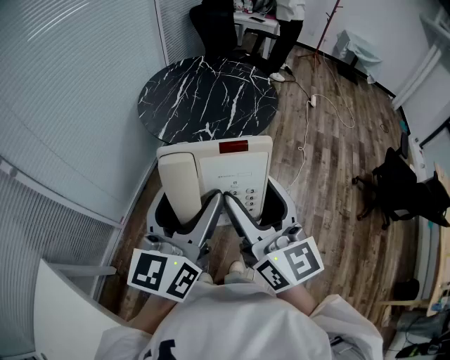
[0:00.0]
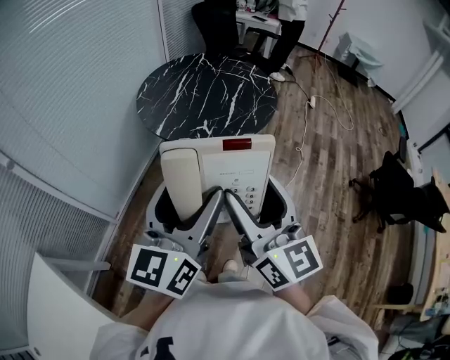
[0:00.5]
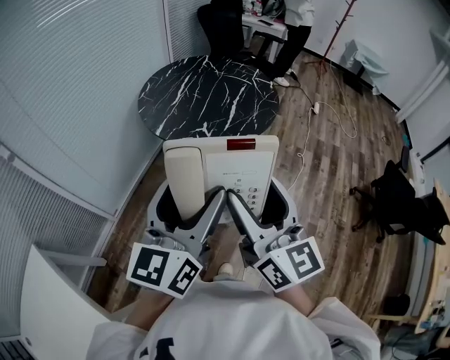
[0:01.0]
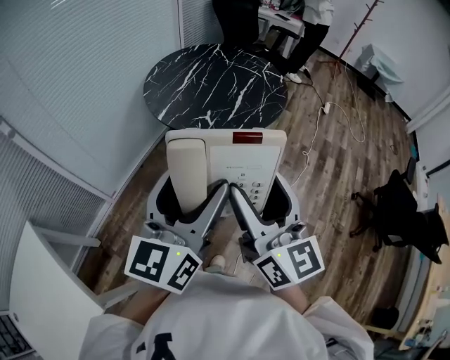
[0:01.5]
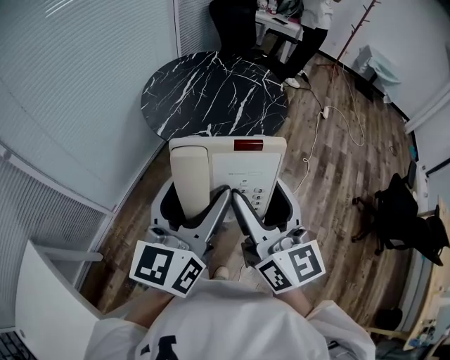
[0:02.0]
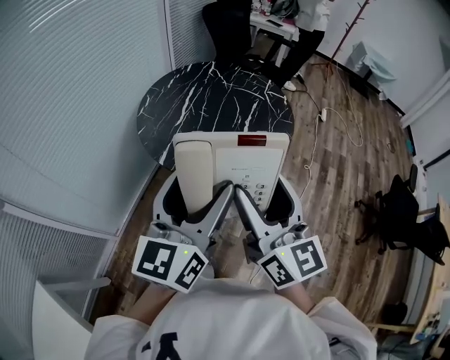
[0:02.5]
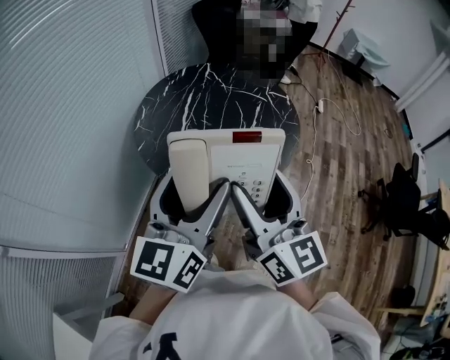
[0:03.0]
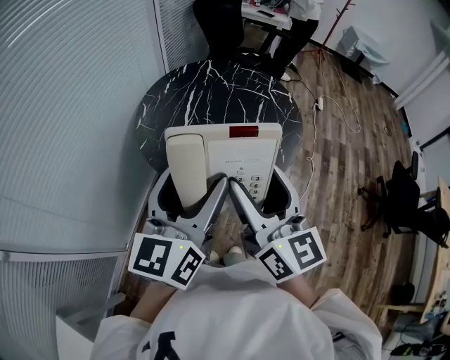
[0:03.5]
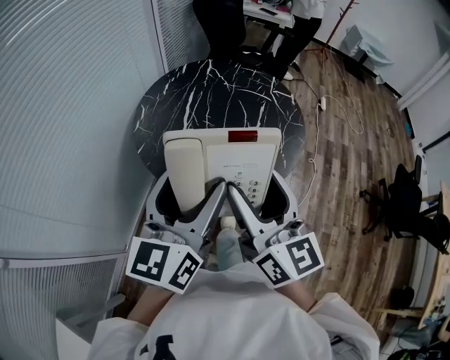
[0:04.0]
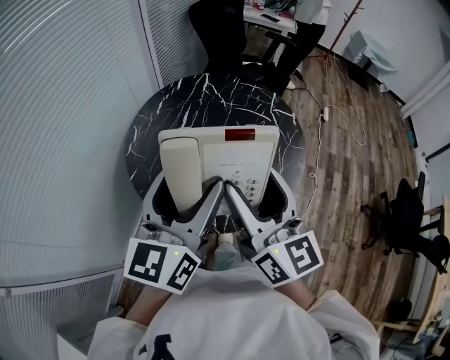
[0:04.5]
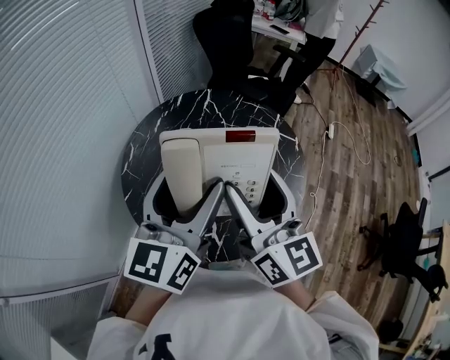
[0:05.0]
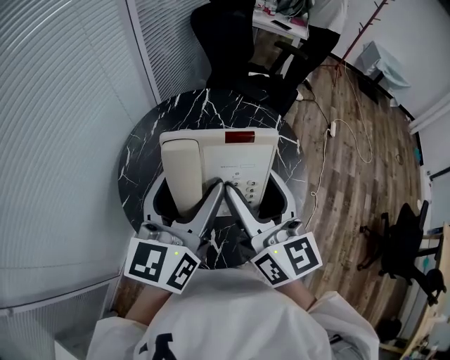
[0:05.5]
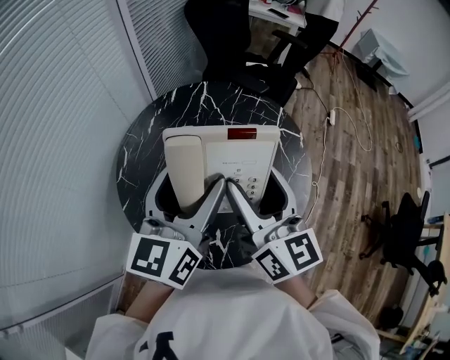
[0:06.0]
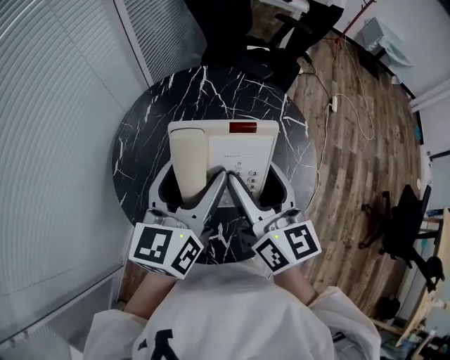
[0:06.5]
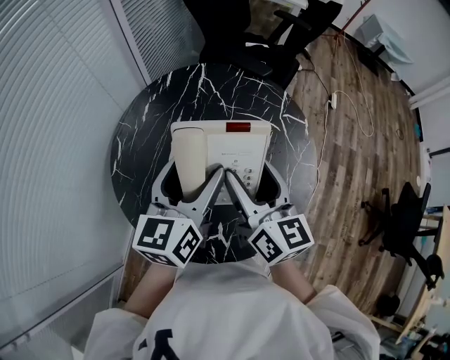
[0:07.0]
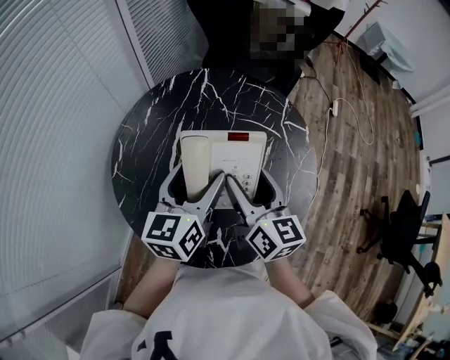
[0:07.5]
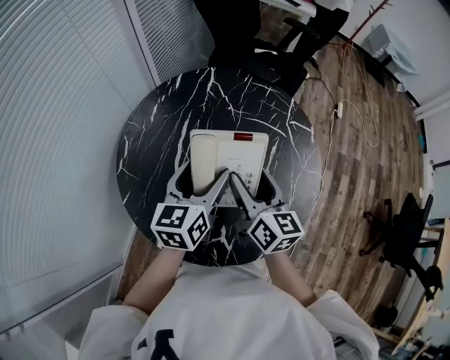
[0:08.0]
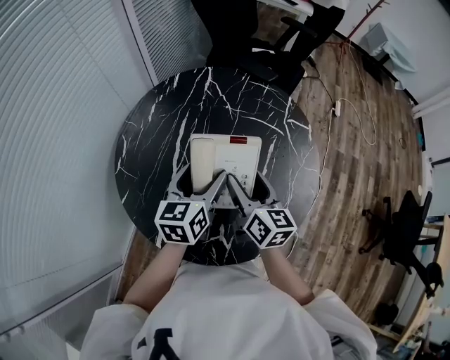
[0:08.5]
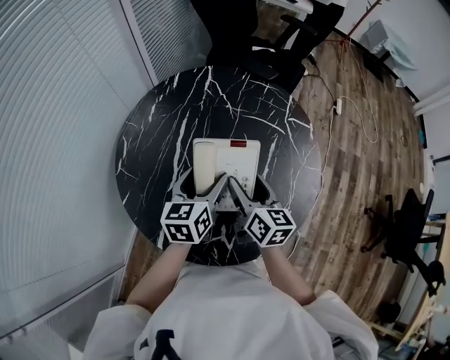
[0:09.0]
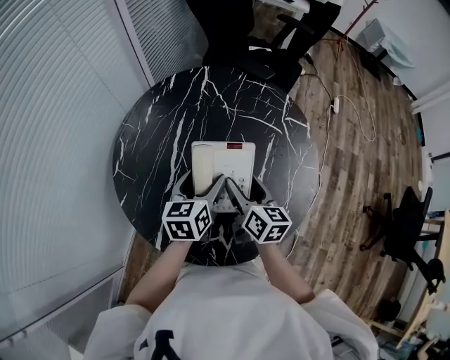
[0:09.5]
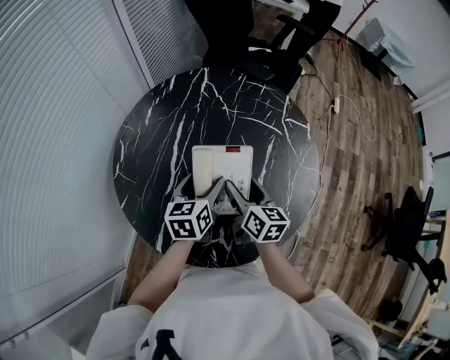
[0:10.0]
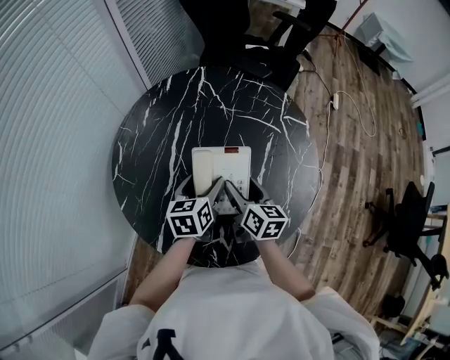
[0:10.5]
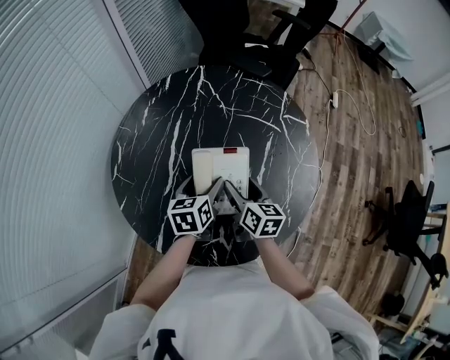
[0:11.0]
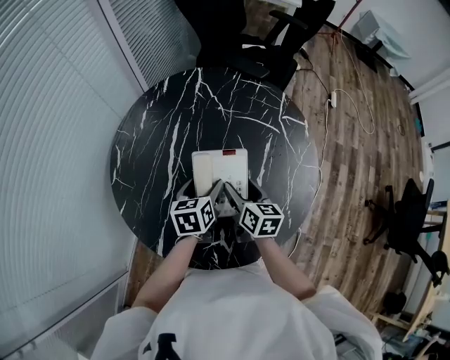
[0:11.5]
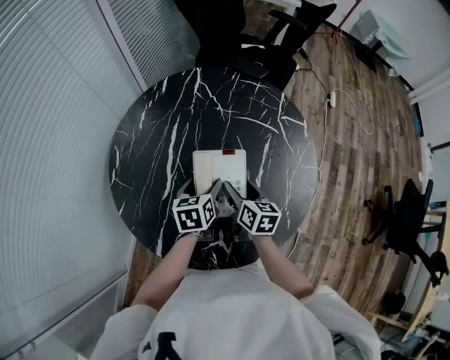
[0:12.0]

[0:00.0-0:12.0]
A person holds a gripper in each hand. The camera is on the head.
0:00.0 to 0:02.0: The two grippers go about 5 cm forward.
0:02.0 to 0:04.0: Both grippers travel together forward and to the left, roughly 25 cm.
0:04.0 to 0:06.0: Both grippers travel together forward, about 30 cm.
0:06.0 to 0:08.0: The two grippers go approximately 15 cm downward.
0:08.0 to 0:10.0: Both grippers move downward, roughly 10 cm.
0:10.0 to 0:12.0: The two grippers go some 5 cm downward.

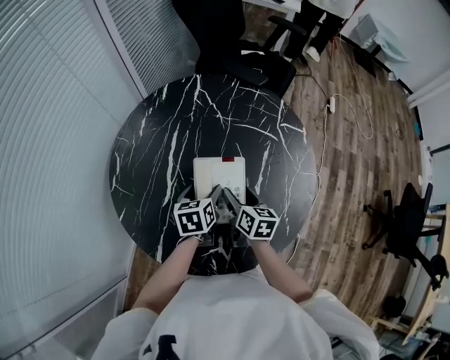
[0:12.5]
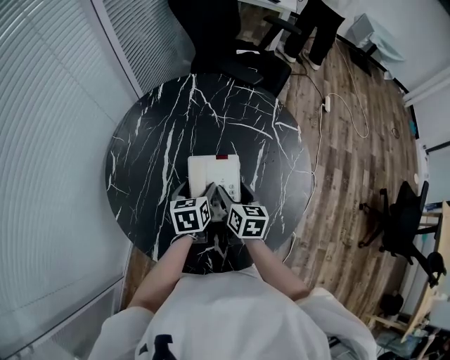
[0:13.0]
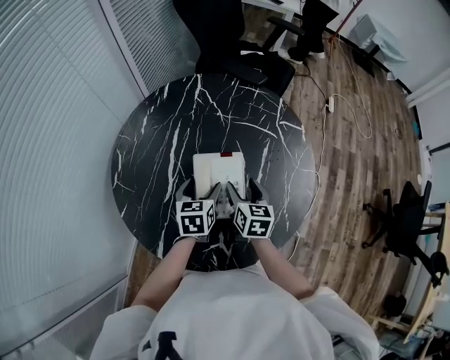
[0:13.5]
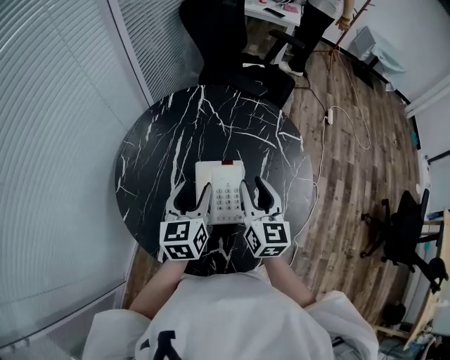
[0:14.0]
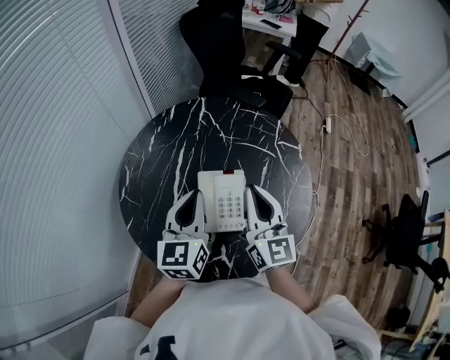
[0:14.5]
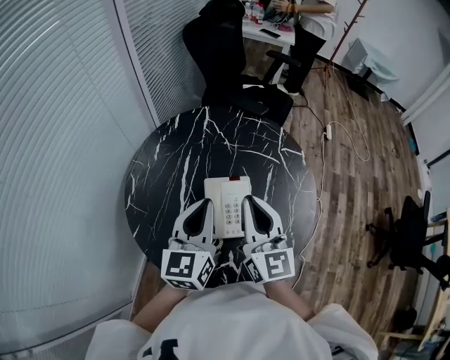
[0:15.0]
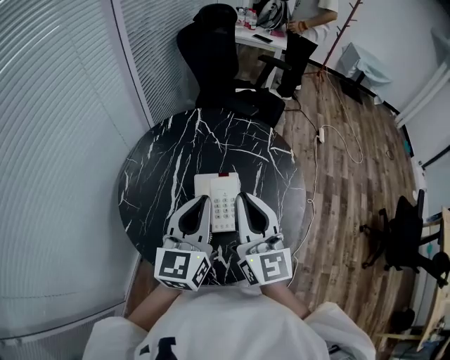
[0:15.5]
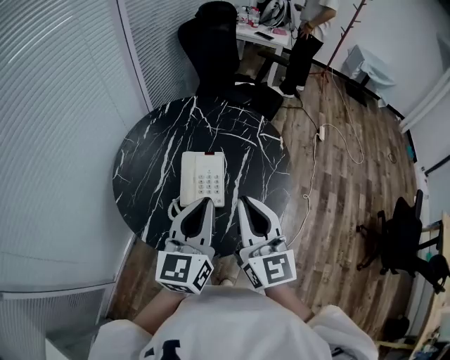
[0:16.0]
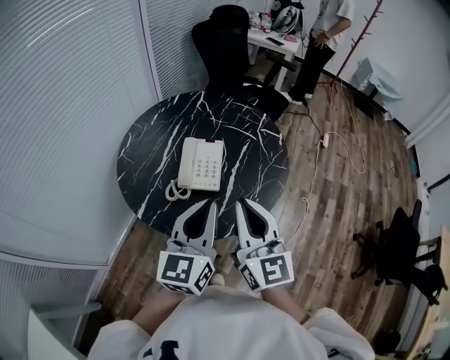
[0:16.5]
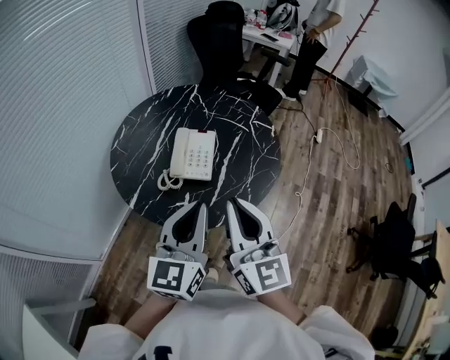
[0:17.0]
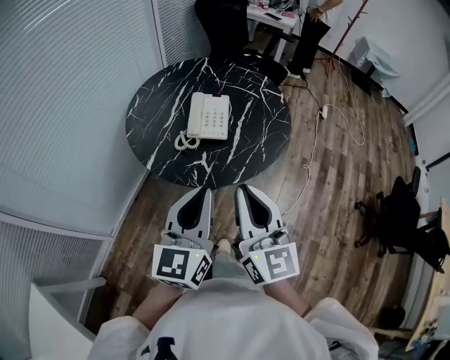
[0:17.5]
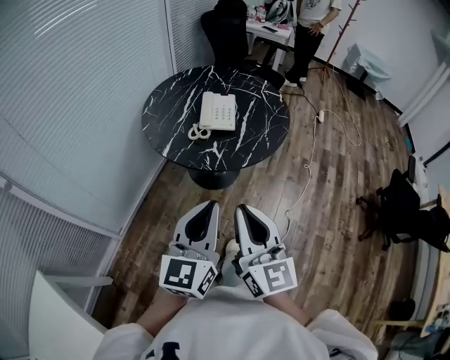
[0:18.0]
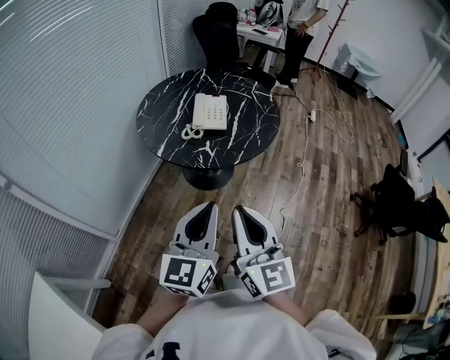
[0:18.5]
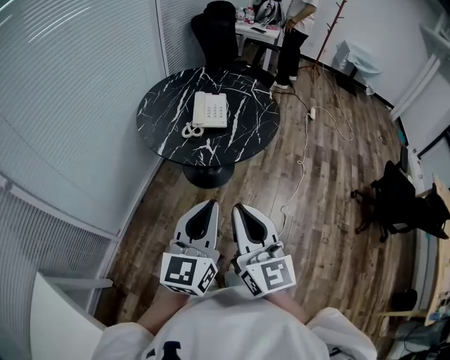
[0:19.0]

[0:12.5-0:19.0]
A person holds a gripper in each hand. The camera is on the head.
0:12.5 to 0:14.5: The grippers both shift upward by roughly 25 cm. The right gripper tips its fingers upward by some 40 degrees, and closes its fingers. Meanwhile the left gripper points its fingers some 30 degrees further upward, and closes its fingers.
0:14.5 to 0:17.0: The right gripper moves backward, about 25 cm, while the left gripper goes approximately 30 cm backward and to the right.
0:17.0 to 0:19.0: Both grippers move backward, some 30 cm.

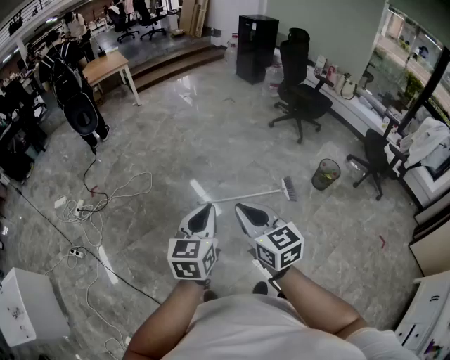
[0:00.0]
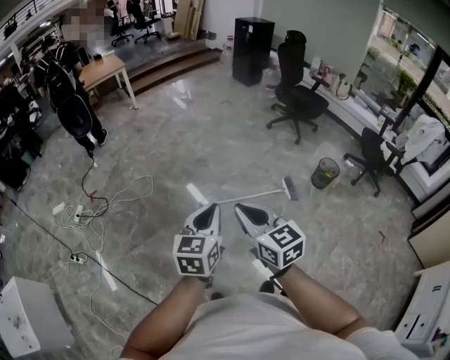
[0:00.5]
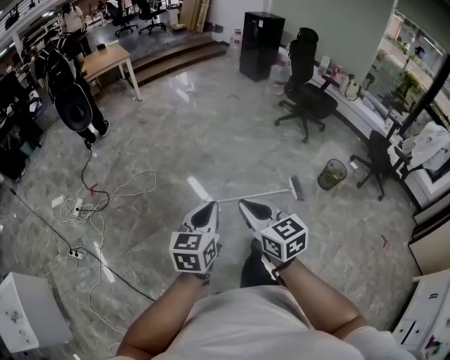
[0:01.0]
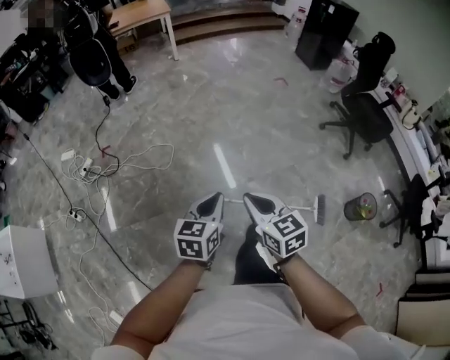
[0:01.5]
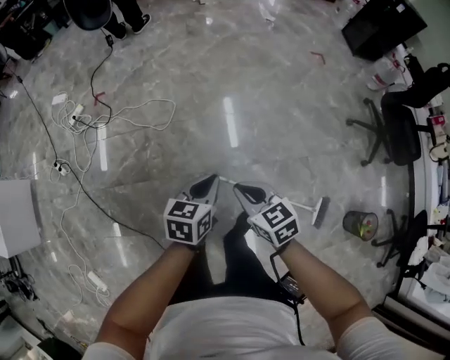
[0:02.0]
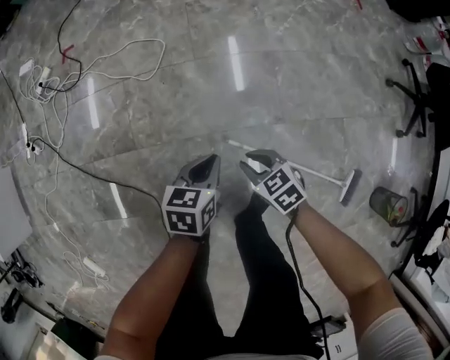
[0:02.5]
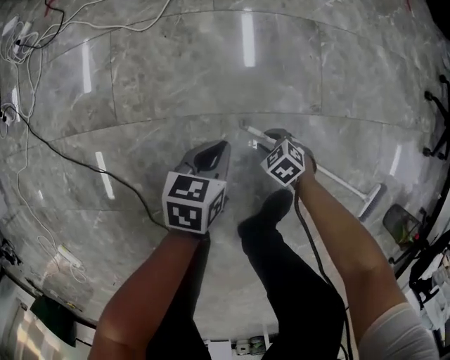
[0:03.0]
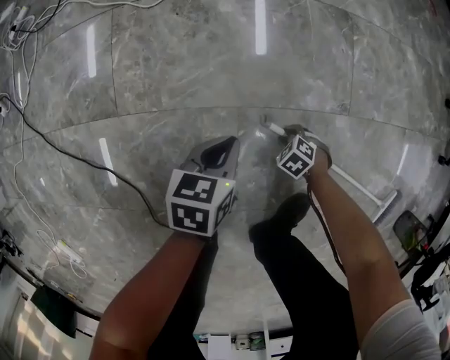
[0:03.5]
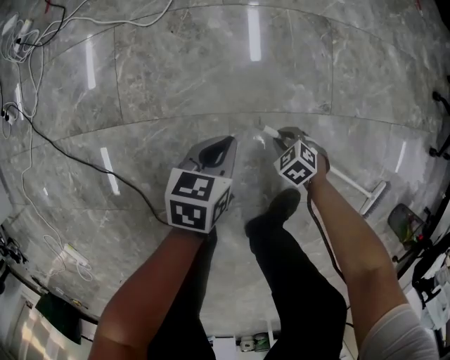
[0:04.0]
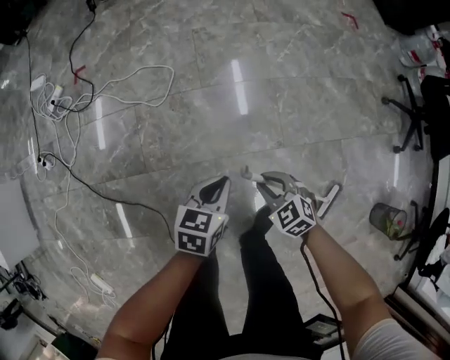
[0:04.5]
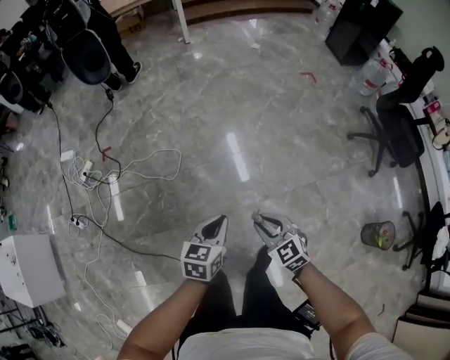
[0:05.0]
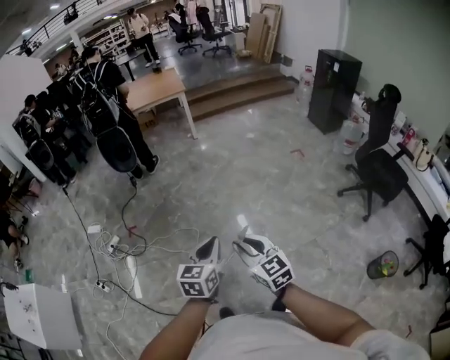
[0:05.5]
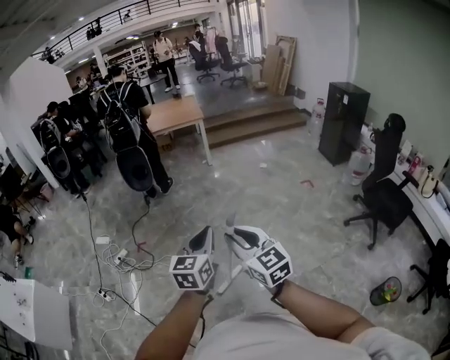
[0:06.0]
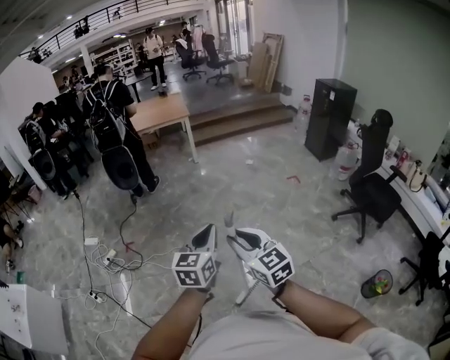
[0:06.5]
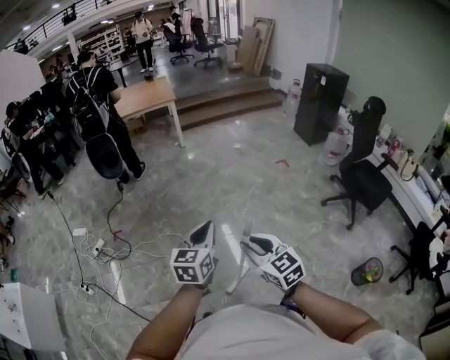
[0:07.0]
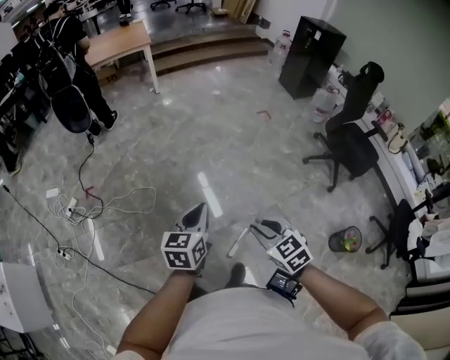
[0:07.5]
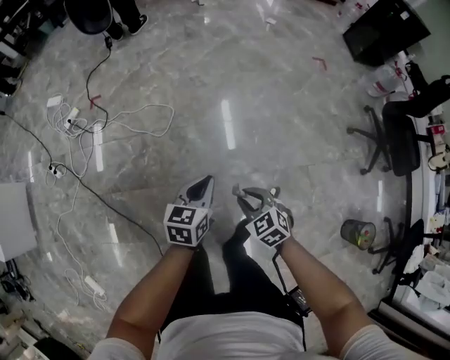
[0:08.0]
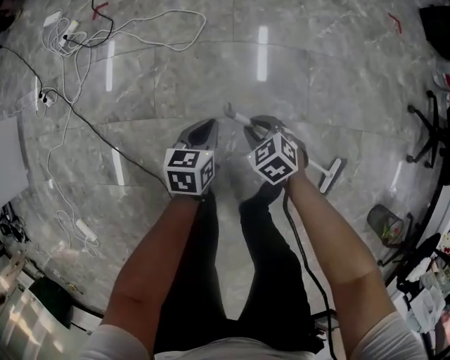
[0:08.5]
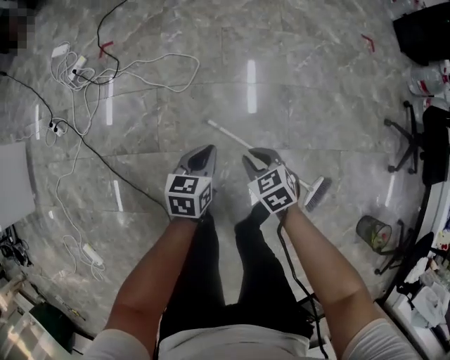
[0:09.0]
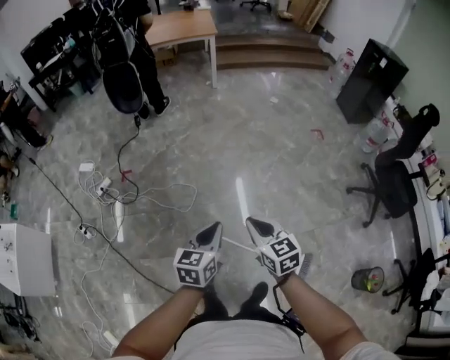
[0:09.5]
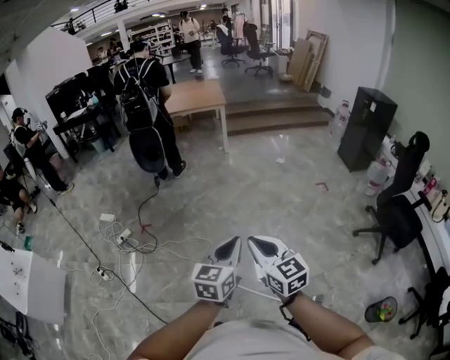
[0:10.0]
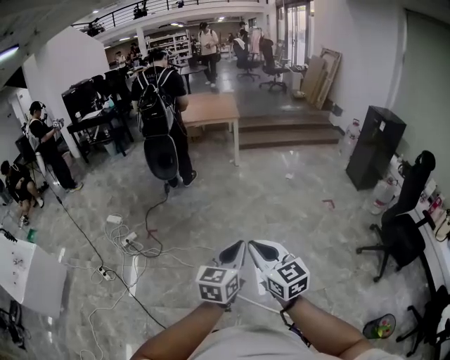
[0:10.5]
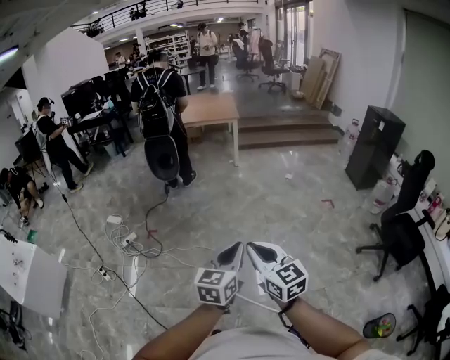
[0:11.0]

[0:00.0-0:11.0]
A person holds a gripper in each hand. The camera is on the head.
0:00.0 to 0:02.0: The pair of grippers is taken about 60 cm. The left gripper swivels approximately 30 degrees; the right gripper turns by roughly 40 degrees.
0:02.0 to 0:03.5: The grippers both shift downward by approximately 80 cm. The right gripper angles its fingers downward, by about 50 degrees, and opens up.
0:03.5 to 0:05.5: The grippers both shift upward by approximately 1 m. The left gripper turns by approximately 40 degrees. The right gripper tips its fingers upward by some 70 degrees.
0:05.5 to 0:07.5: The left gripper is displaced to the right by roughly 10 cm, and moves some 10 cm upward and comes back, while the right gripper heads to the right, downward and backward, covering roughly 20 cm, and swivels about 30 degrees.
0:07.5 to 0:09.0: Both grippers move downward and to the left, approximately 50 cm. The right gripper turns by roughly 20 degrees; the left gripper swivels roughly 20 degrees.
0:09.0 to 0:11.0: The two grippers go about 70 cm upward. The right gripper tilts its fingers about 50 degrees upward. The left gripper swivels about 30 degrees.
